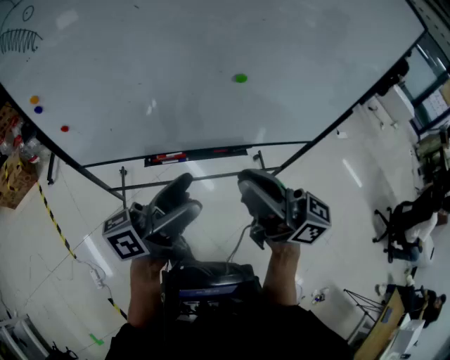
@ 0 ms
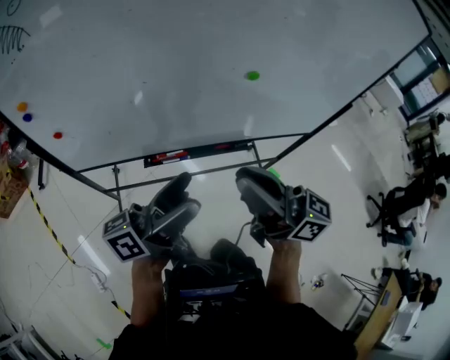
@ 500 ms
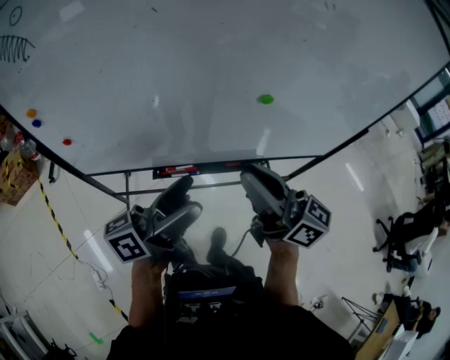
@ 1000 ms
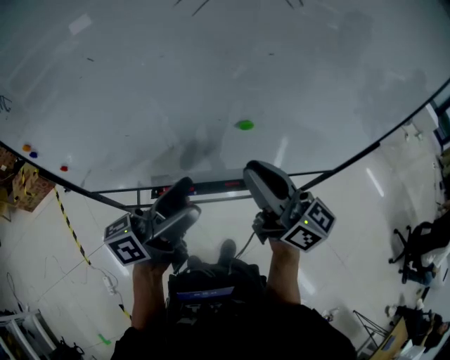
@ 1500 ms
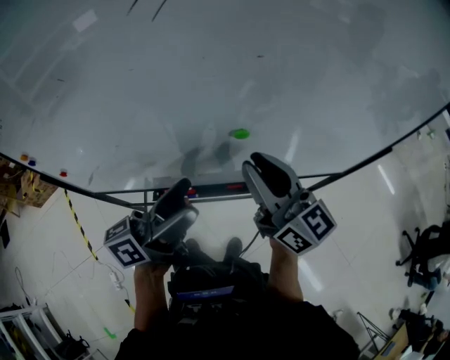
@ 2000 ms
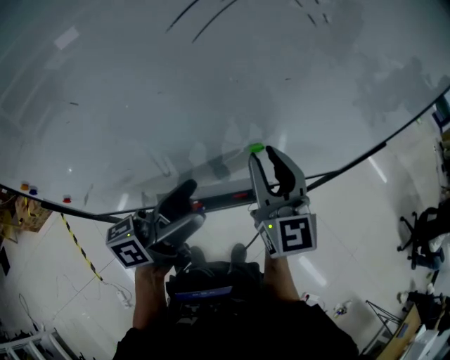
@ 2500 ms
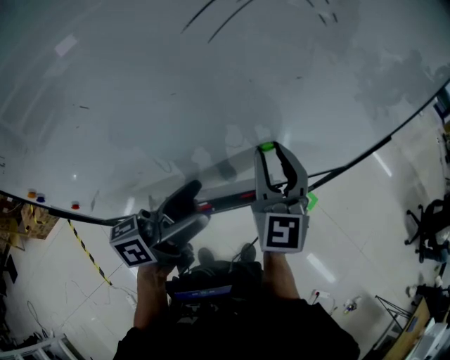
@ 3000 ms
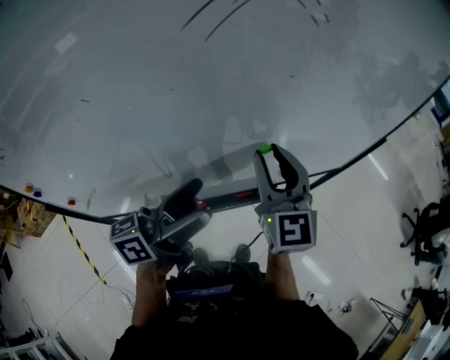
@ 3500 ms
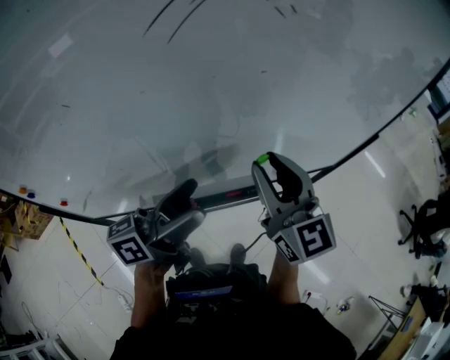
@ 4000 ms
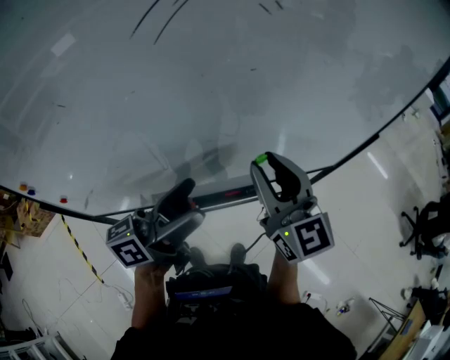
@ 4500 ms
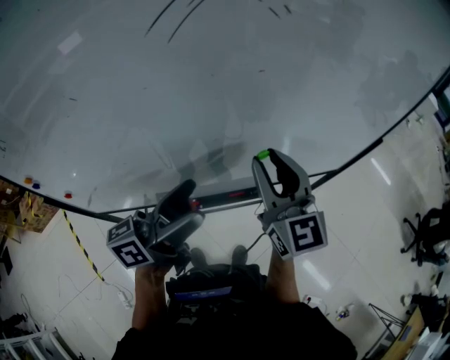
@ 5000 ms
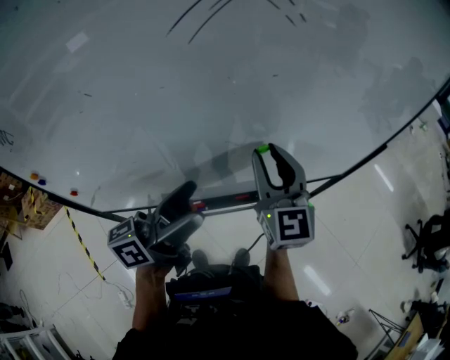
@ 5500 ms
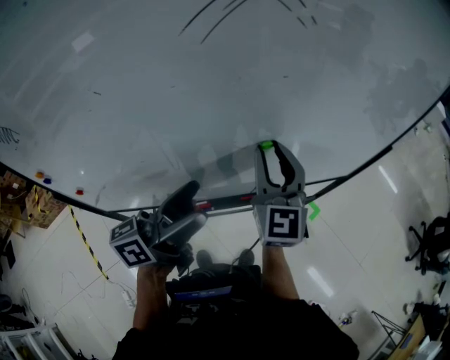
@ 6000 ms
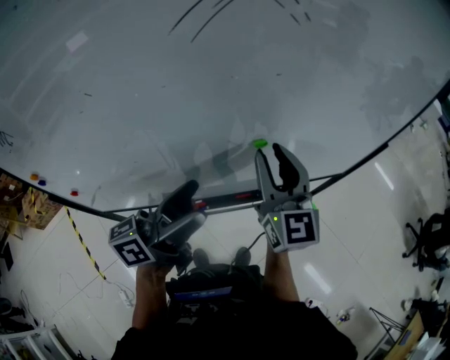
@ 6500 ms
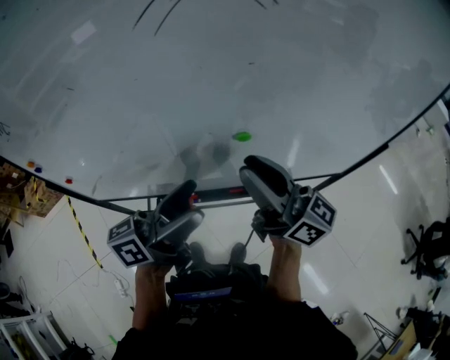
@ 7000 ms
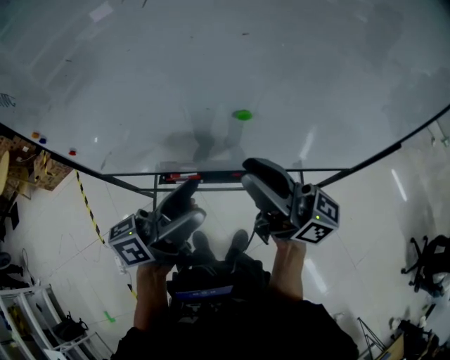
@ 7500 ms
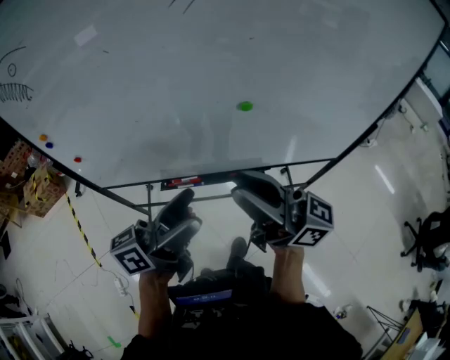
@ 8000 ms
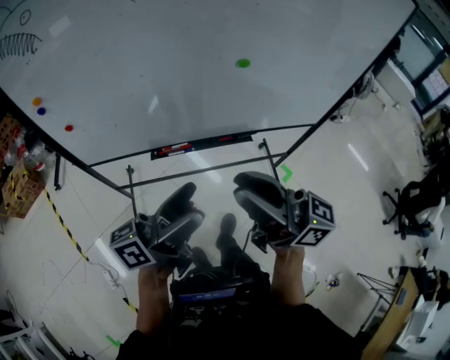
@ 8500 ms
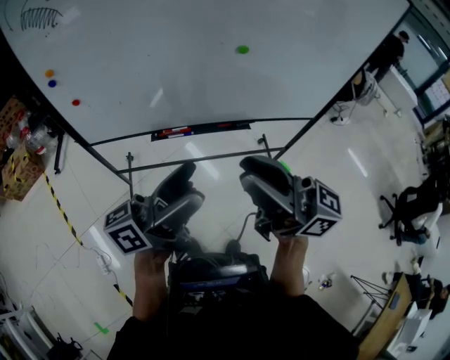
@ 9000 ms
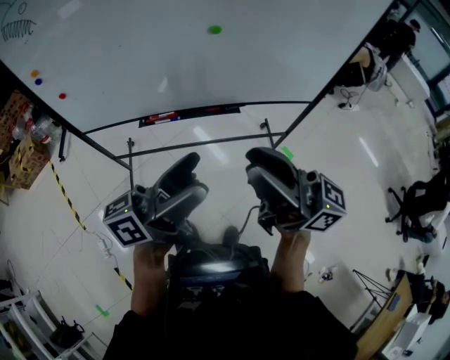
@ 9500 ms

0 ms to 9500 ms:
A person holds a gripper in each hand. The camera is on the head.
0 ms to 2000 ms: Both grippers travel together forward, approximately 20 cm. The right gripper changes its angle by approximately 30 degrees.
2000 ms to 4000 ms: The right gripper changes its angle by some 30 degrees.
4000 ms to 5500 ms: There are only small adjustments of the grippers.
5500 ms to 7500 ms: The right gripper changes place by about 10 cm, and turns by roughly 70 degrees. Meanwhile the left gripper changes place by some 10 cm.
7500 ms to 9500 ms: The two grippers go approximately 25 cm backward.

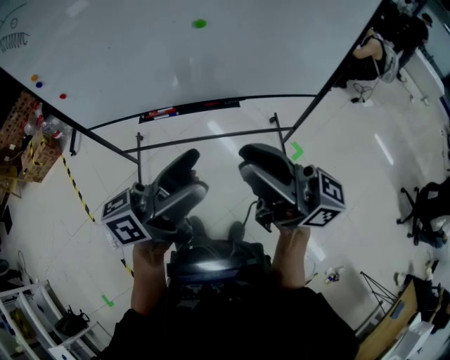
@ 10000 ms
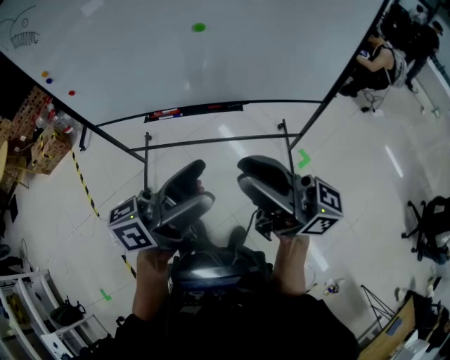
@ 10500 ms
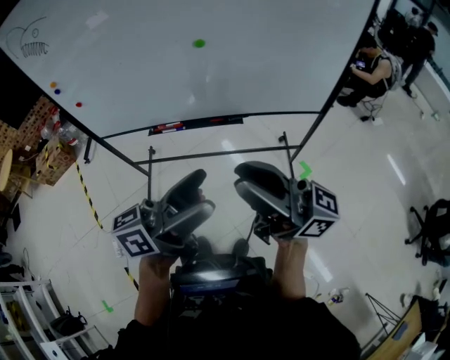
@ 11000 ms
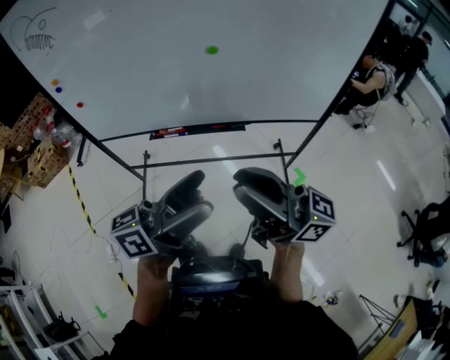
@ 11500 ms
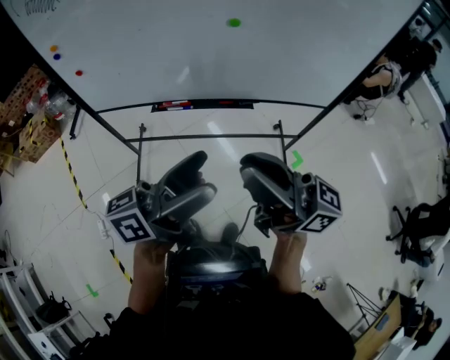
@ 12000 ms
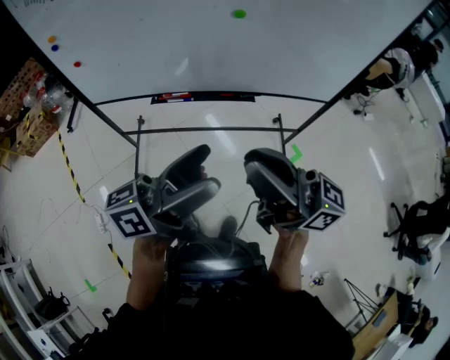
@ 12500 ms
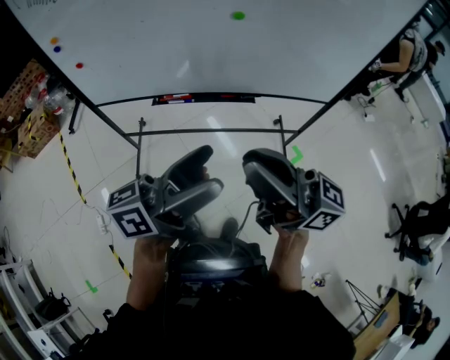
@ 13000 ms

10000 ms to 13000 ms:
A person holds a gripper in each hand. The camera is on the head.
10000 ms to 11500 ms: The grippers make only small movements.
11500 ms to 13000 ms: The grippers make only small movements.

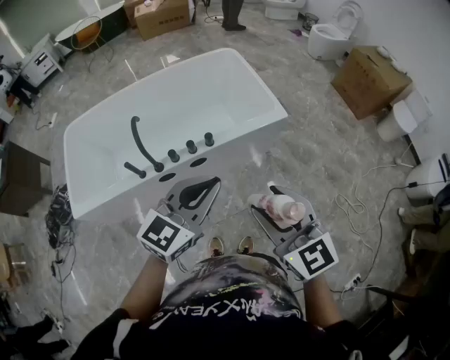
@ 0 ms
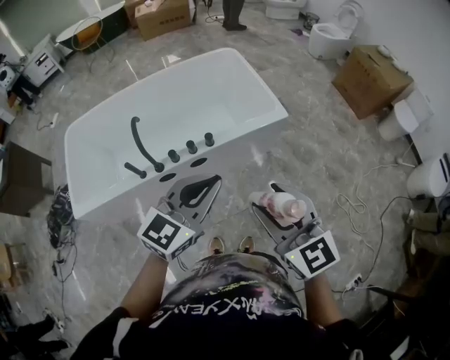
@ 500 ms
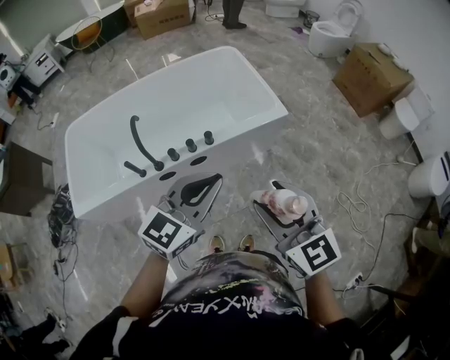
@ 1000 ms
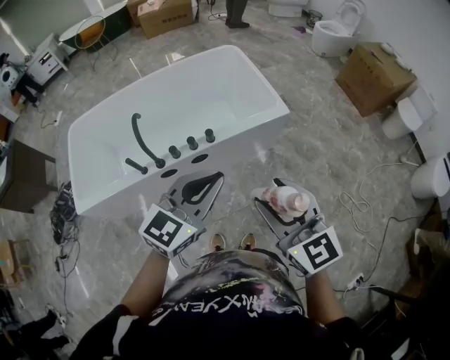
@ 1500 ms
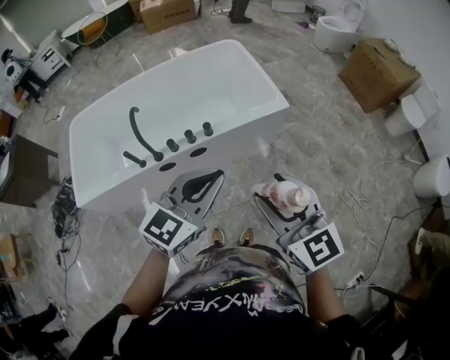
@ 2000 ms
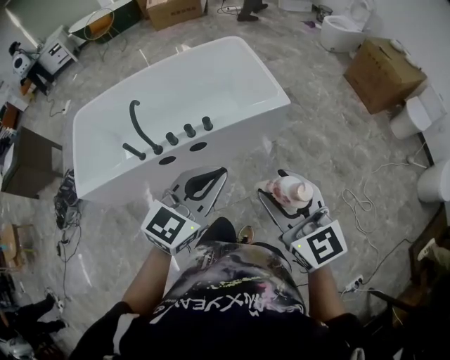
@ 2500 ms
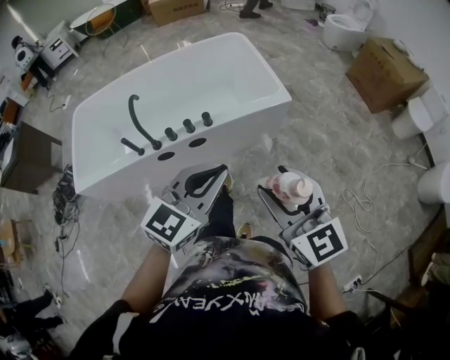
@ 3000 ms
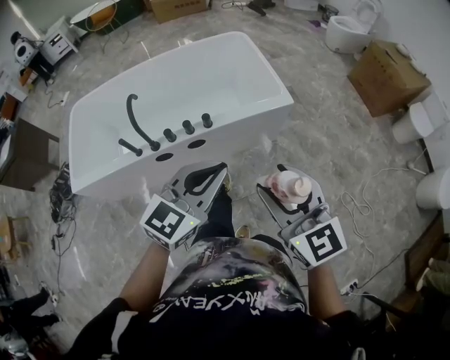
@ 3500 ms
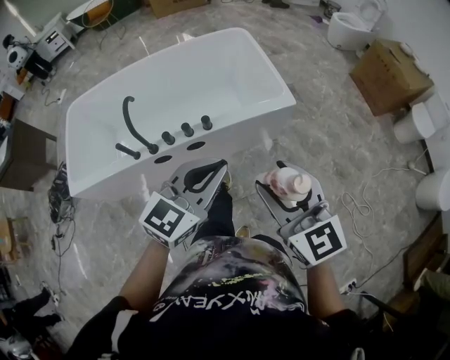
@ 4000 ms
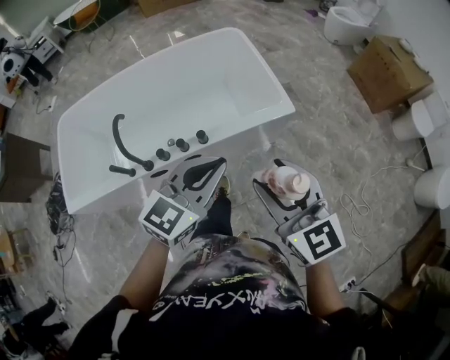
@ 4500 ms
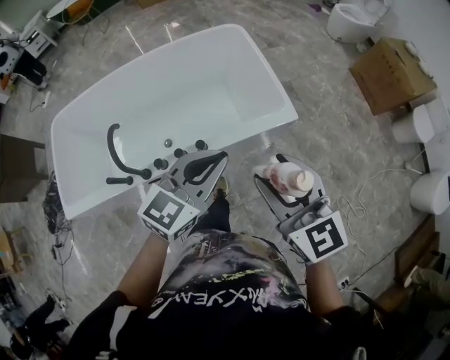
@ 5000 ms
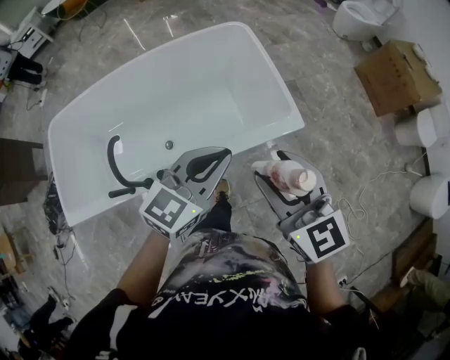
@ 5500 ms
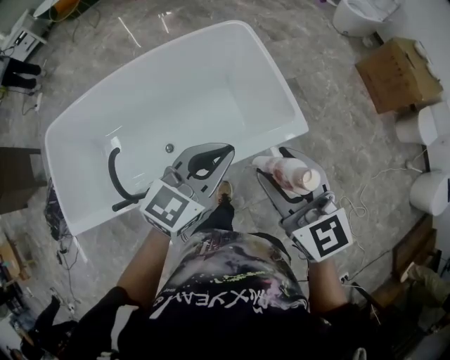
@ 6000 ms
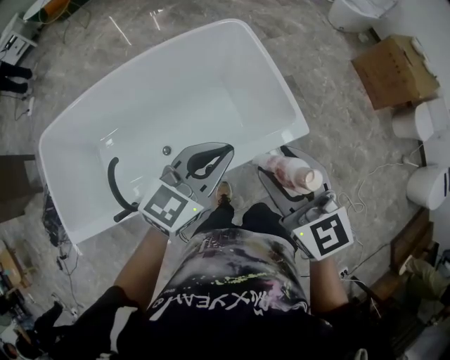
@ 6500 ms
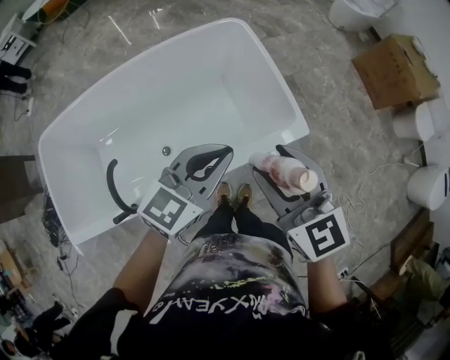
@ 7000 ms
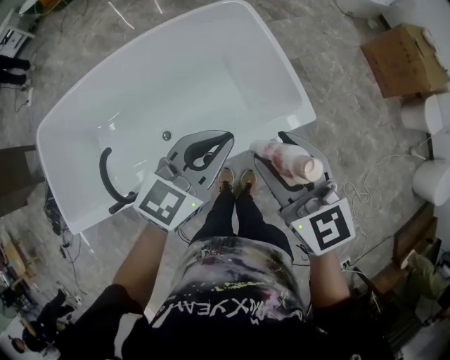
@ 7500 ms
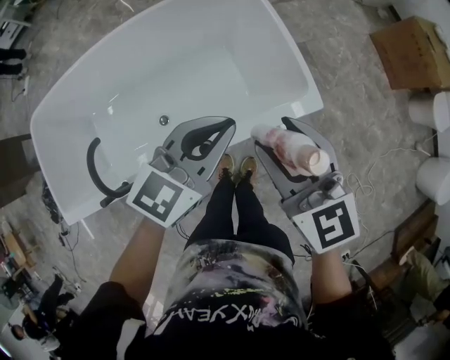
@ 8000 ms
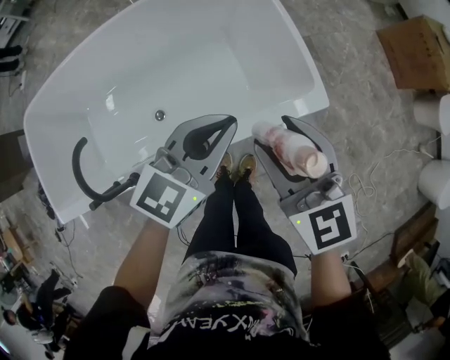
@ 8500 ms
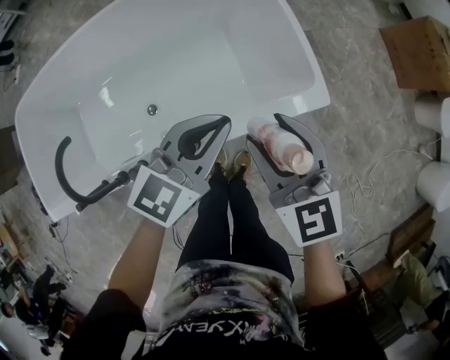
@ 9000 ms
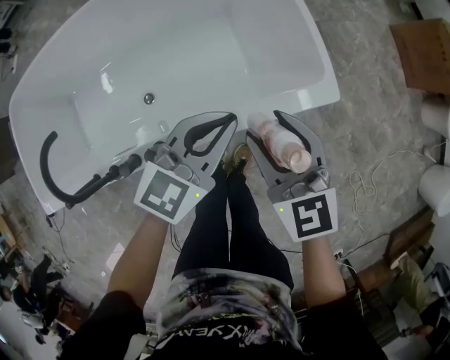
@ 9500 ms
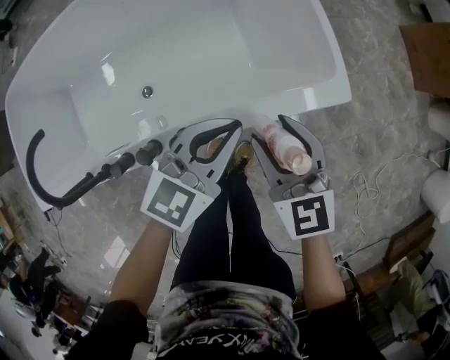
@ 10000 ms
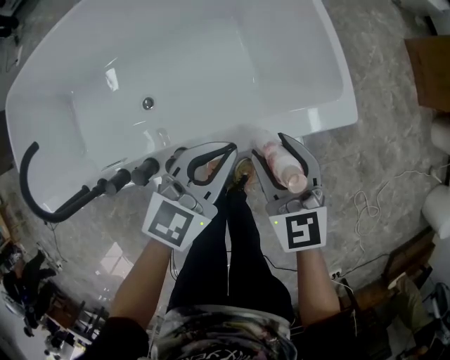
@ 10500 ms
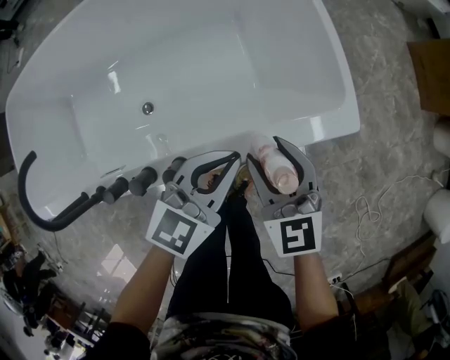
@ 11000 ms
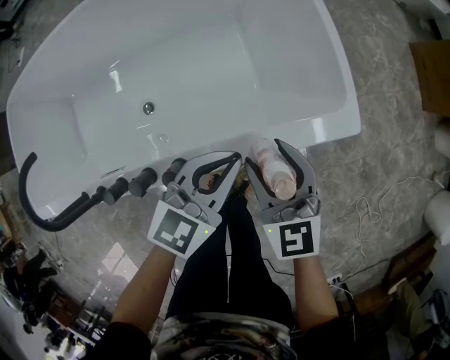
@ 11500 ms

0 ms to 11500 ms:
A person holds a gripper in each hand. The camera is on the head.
0 ms to 2000 ms: The two grippers go approximately 5 cm to the right.
2000 ms to 4000 ms: The two grippers go about 5 cm forward.
4000 ms to 6000 ms: The grippers both shift forward by approximately 35 cm.
6000 ms to 7500 ms: The right gripper shifts some 5 cm downward; the left gripper changes place by about 5 cm.
7500 ms to 9500 ms: Both grippers travel together downward, roughly 20 cm.
9500 ms to 11500 ms: Both grippers travel together downward, some 10 cm.

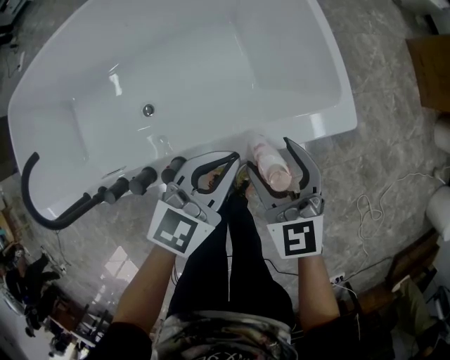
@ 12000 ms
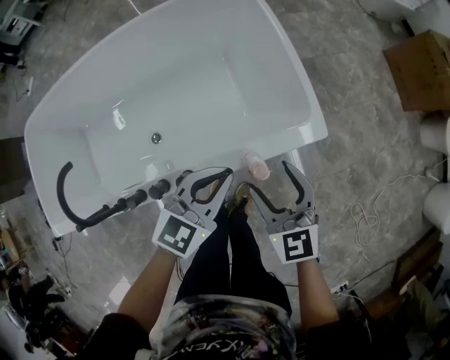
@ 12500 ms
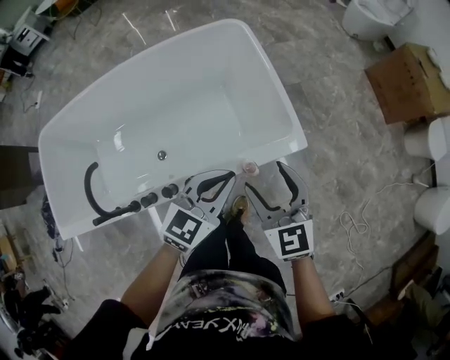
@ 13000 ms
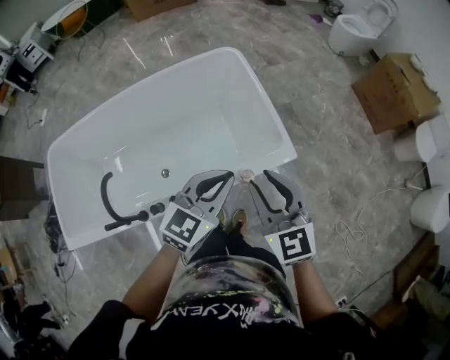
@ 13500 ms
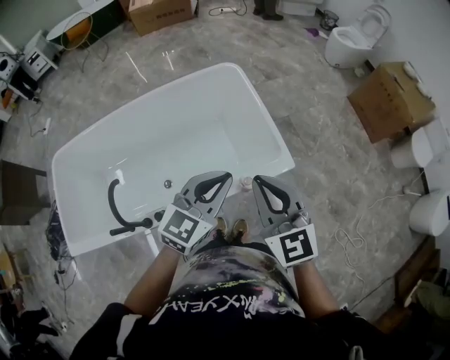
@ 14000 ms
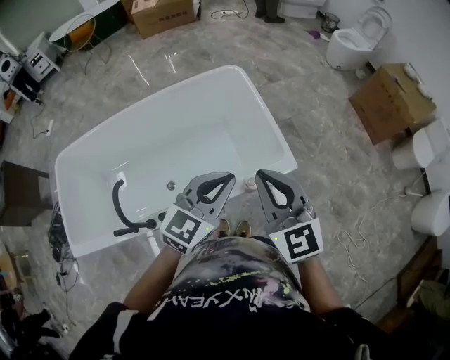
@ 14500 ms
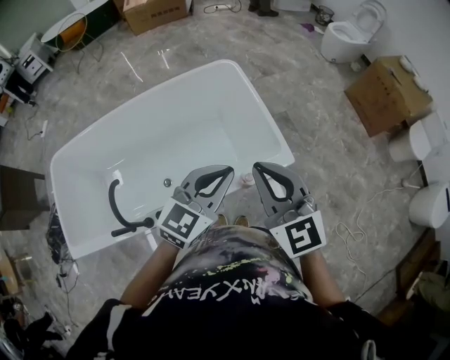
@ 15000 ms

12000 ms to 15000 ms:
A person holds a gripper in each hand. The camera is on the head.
12000 ms to 13500 ms: The grippers both shift upward by roughly 35 cm. The right gripper closes.
13500 ms to 15000 ms: The right gripper is displaced upward by about 10 cm, and closes; the left gripper shifts roughly 5 cm upward.
